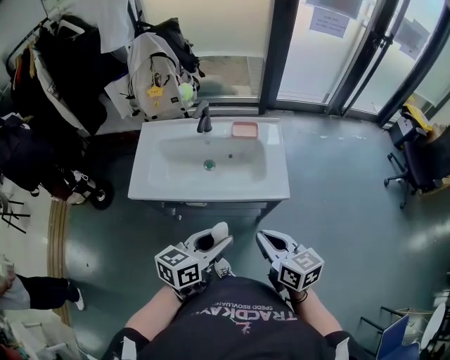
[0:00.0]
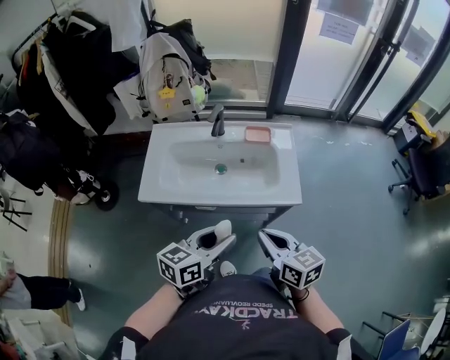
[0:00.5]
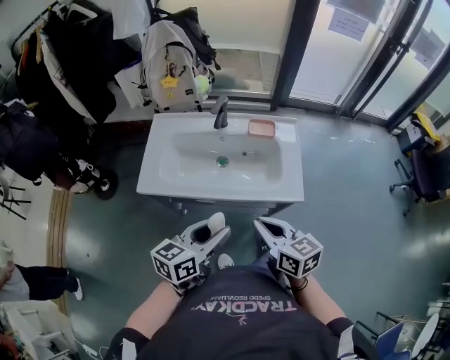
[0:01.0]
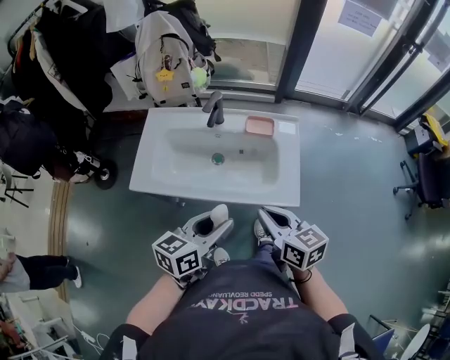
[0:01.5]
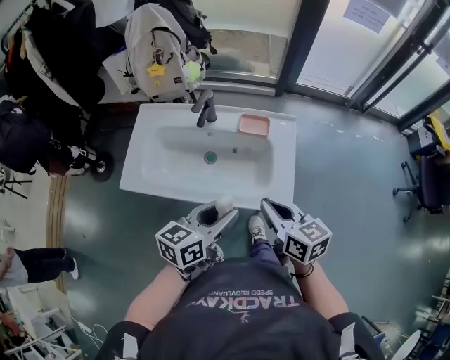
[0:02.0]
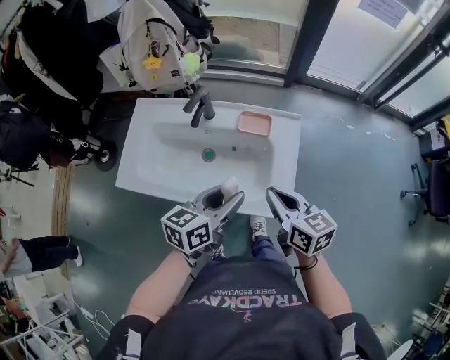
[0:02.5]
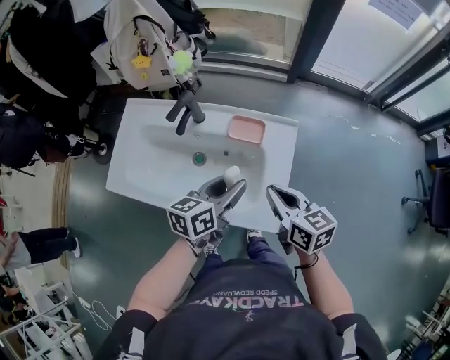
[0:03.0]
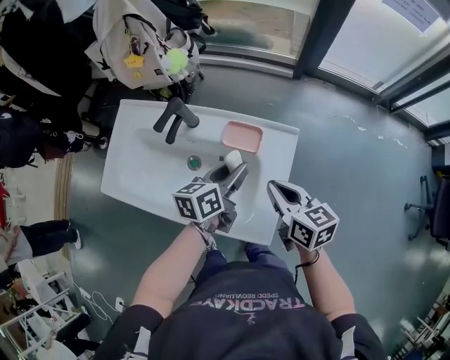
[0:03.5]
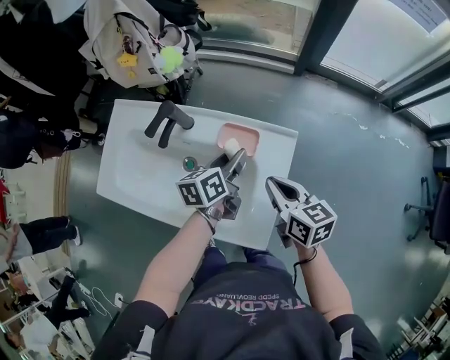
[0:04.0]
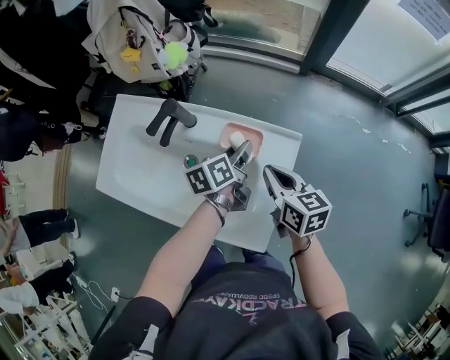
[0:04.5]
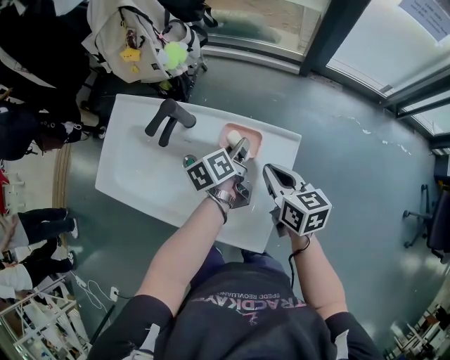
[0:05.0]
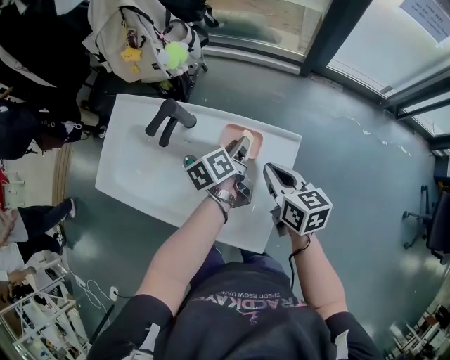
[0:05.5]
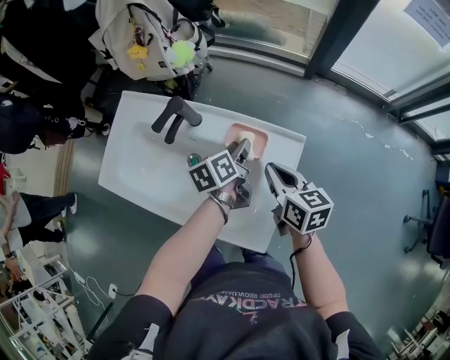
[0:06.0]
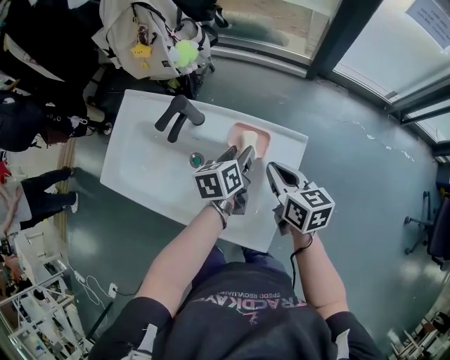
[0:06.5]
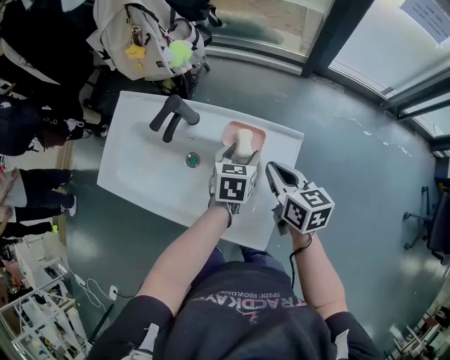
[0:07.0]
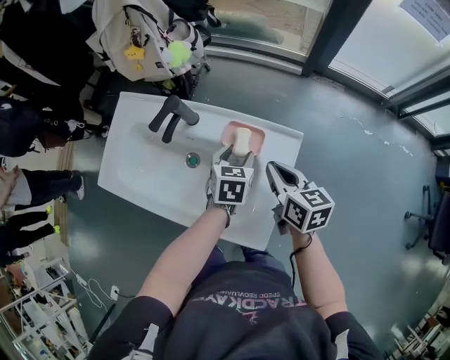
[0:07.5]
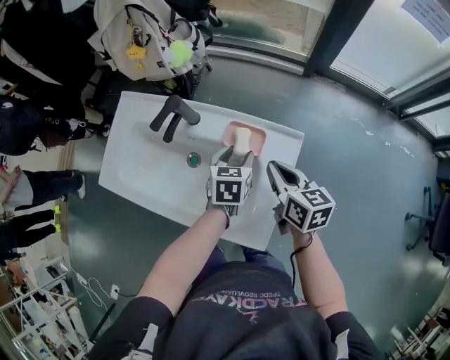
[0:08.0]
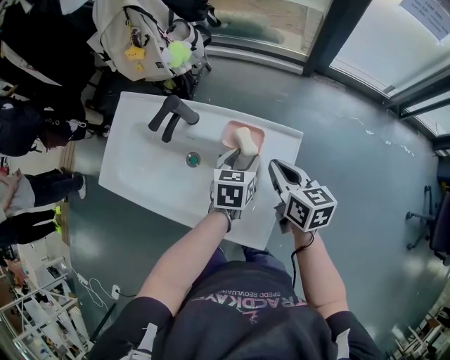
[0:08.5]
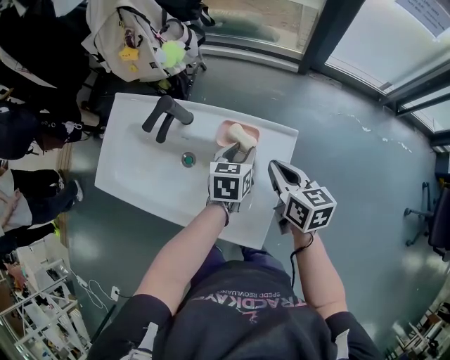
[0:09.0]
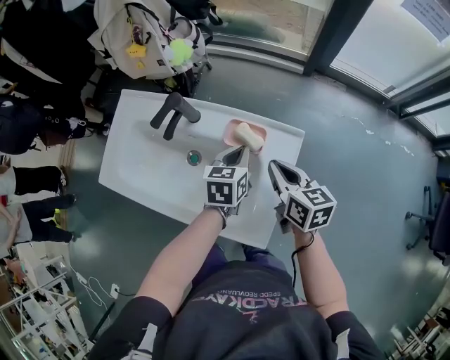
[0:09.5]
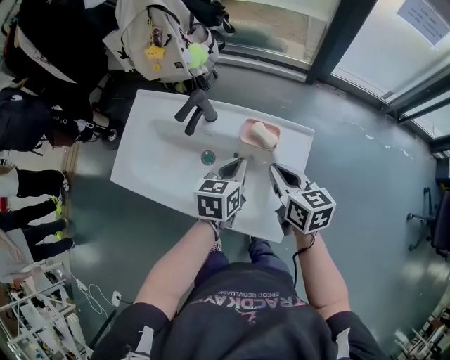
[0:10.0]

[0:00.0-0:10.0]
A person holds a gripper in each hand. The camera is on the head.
0.0 to 2.0 s: The two grippers go about 15 cm forward.
2.0 to 4.0 s: The left gripper is displaced forward, downward and to the right by approximately 35 cm, and rotates about 30 degrees. Meanwhile the right gripper is displaced forward, to the right and downward by about 25 cm.
4.0 to 6.0 s: The grippers make only small movements.
6.0 to 8.0 s: The left gripper swivels about 40 degrees.
8.0 to 10.0 s: The right gripper moves to the left, roughly 5 cm. Meanwhile the left gripper goes about 10 cm upward, to the left and backward, and closes up.

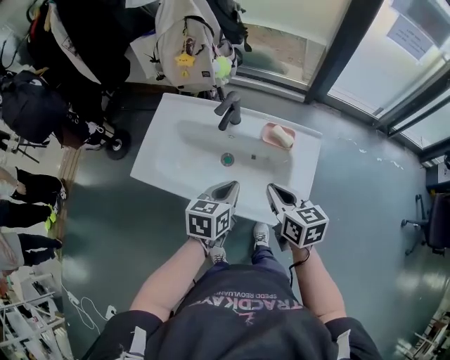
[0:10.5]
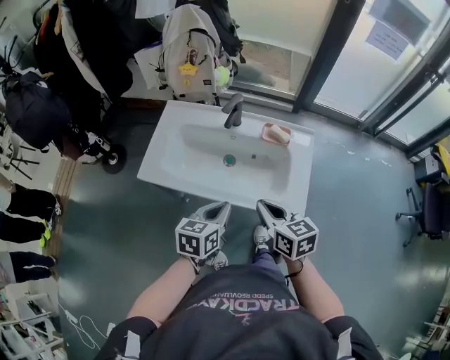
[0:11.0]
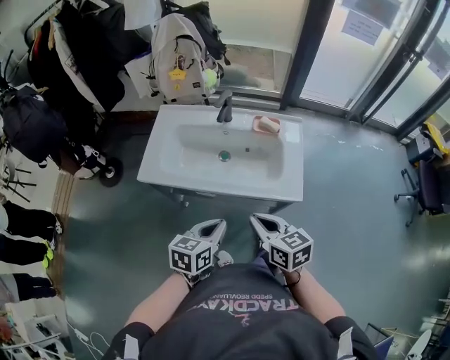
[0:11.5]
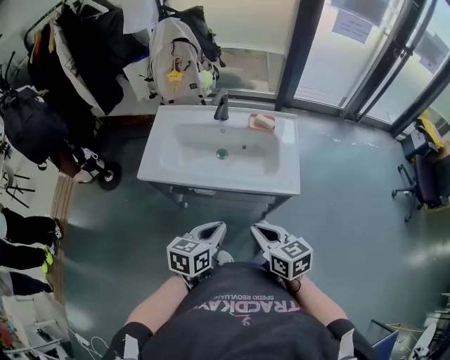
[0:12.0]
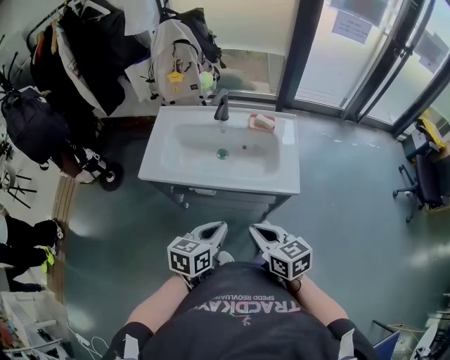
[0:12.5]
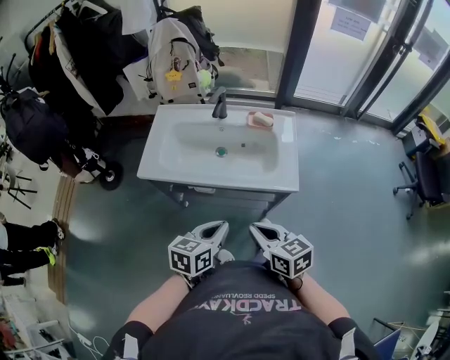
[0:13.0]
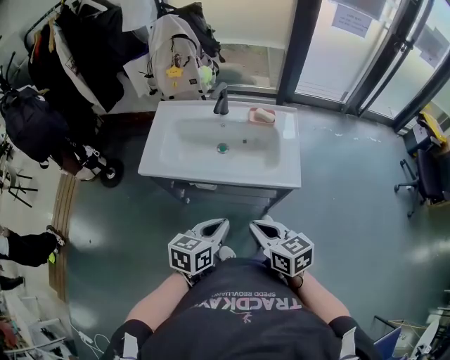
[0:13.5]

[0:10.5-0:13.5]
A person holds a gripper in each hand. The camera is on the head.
10.5 to 12.0 s: The grippers both shift backward by some 25 cm.
12.0 to 13.5 s: There are only small adjustments of the grippers.

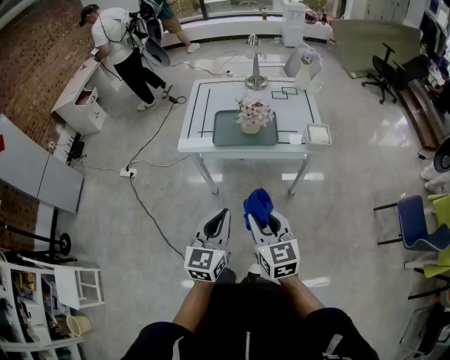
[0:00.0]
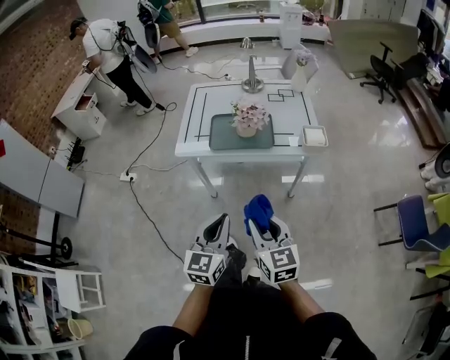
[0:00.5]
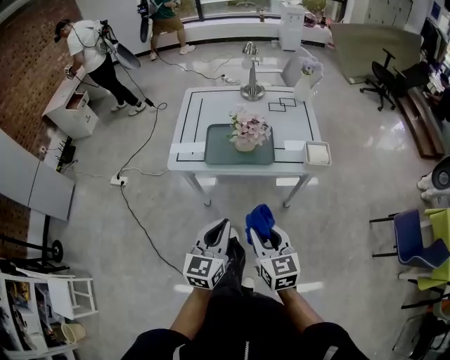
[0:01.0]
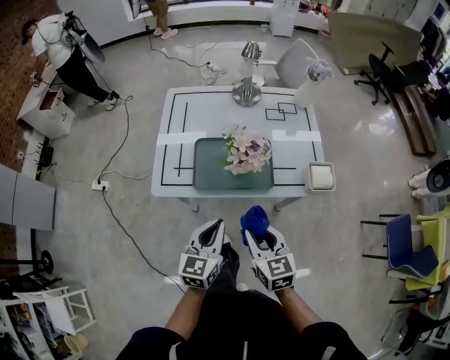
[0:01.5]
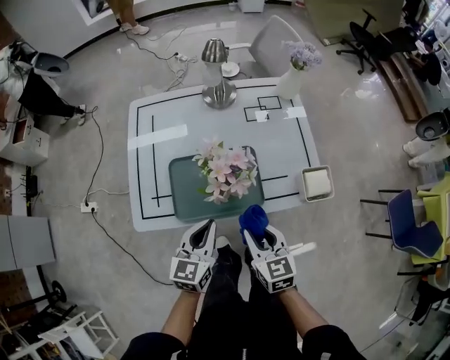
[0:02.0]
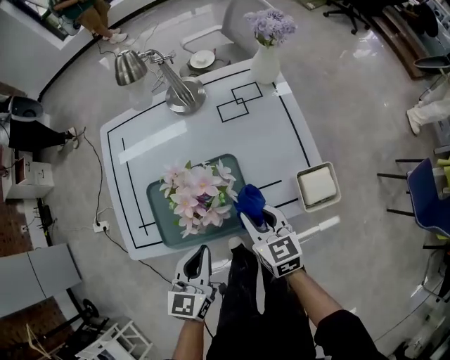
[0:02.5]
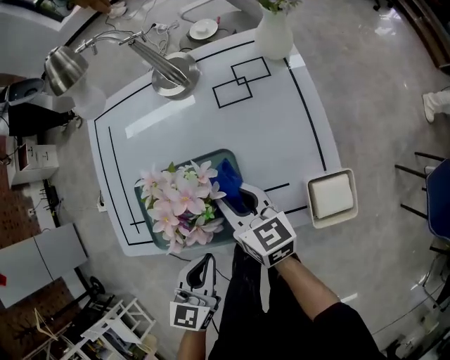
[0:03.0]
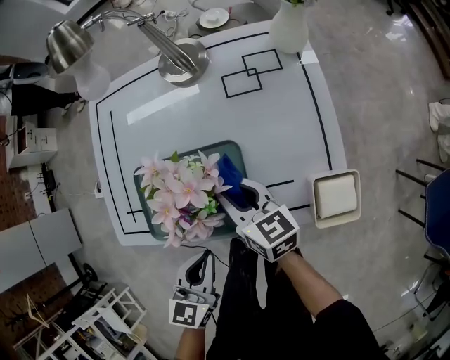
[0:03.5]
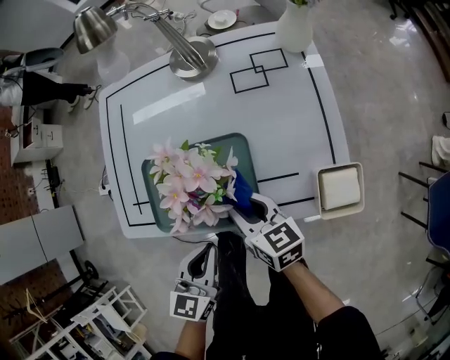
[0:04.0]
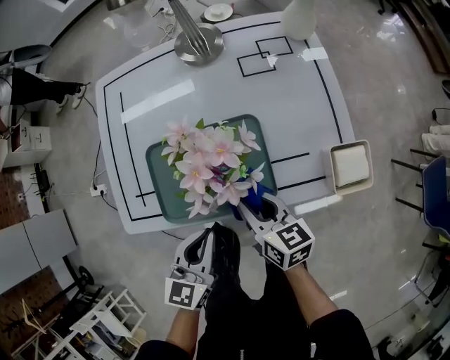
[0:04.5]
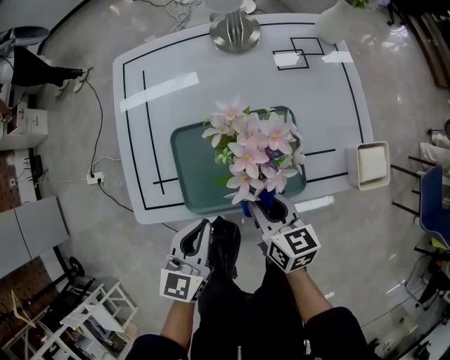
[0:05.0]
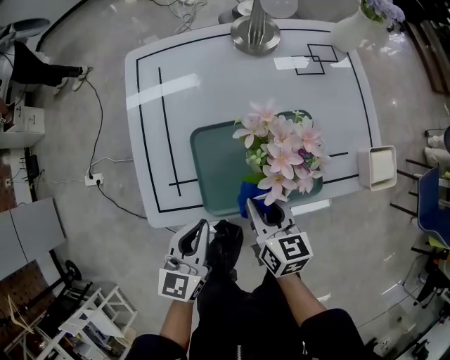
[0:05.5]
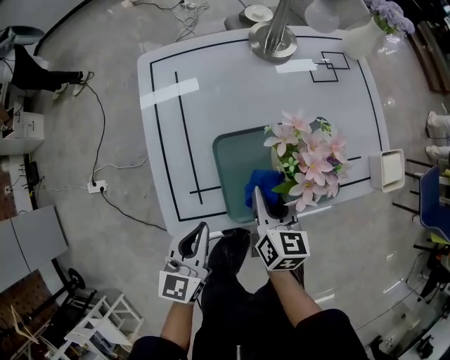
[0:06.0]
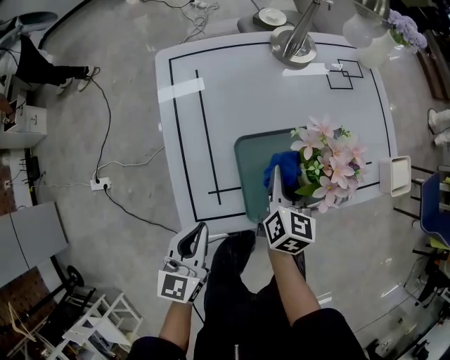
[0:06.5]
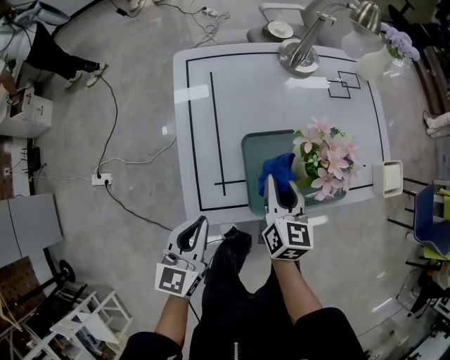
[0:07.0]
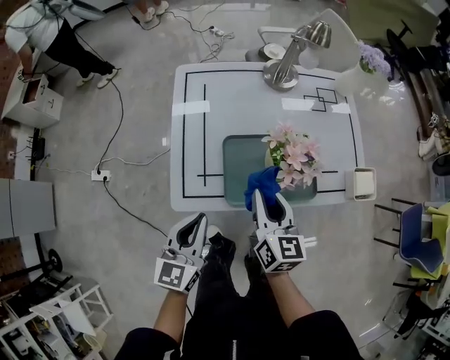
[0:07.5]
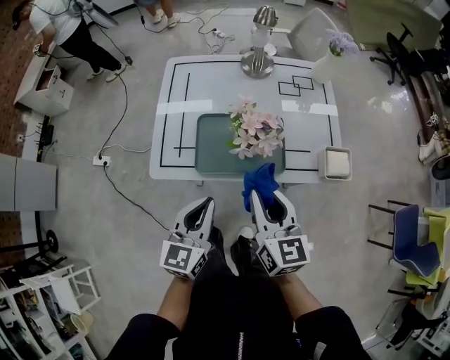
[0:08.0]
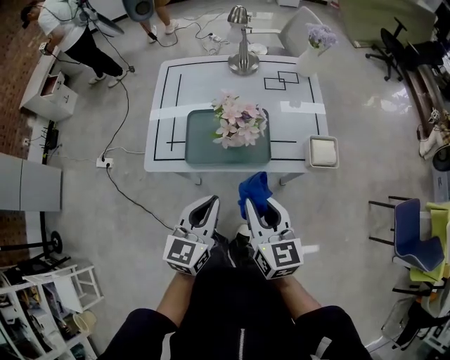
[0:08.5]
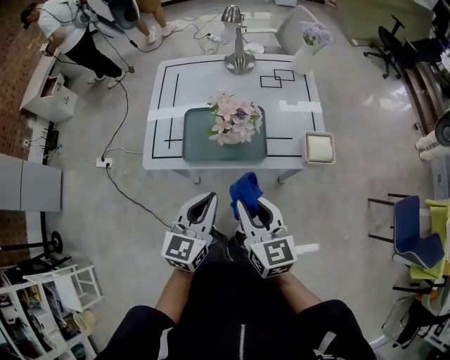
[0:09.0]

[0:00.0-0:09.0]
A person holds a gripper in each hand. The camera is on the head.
0.0 to 2.0 s: Both grippers move forward, about 35 cm.
2.0 to 4.5 s: The left gripper shifts about 10 cm downward, and travels to the right and back again, some 10 cm each way; the right gripper shifts roughly 15 cm downward and forward, and rotates roughly 30 degrees.
4.5 to 7.0 s: Both grippers travel together to the left, approximately 25 cm. The right gripper turns by approximately 30 degrees.
7.0 to 9.0 s: The right gripper goes approximately 35 cm backward, to the right and upward, and rotates roughly 30 degrees. The left gripper travels to the right, backward and upward by roughly 35 cm.

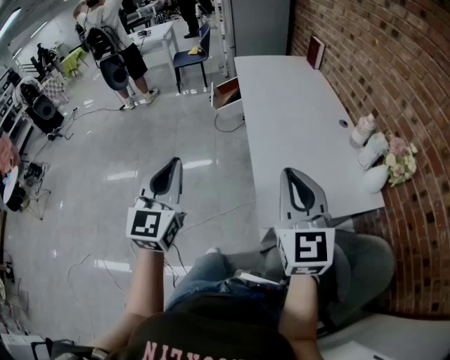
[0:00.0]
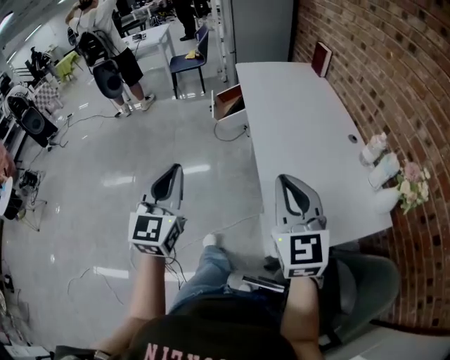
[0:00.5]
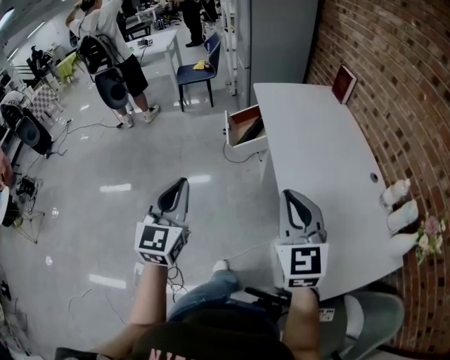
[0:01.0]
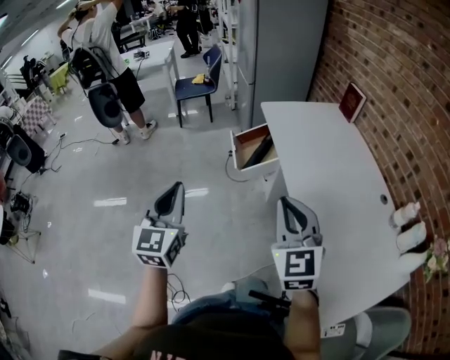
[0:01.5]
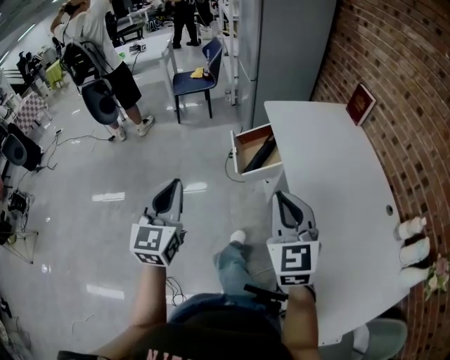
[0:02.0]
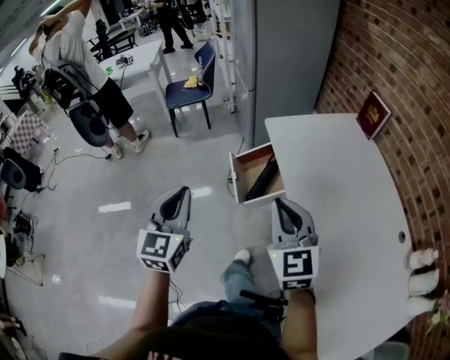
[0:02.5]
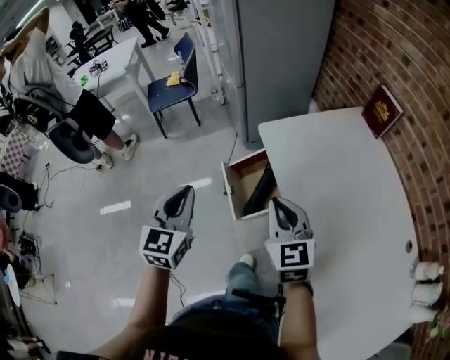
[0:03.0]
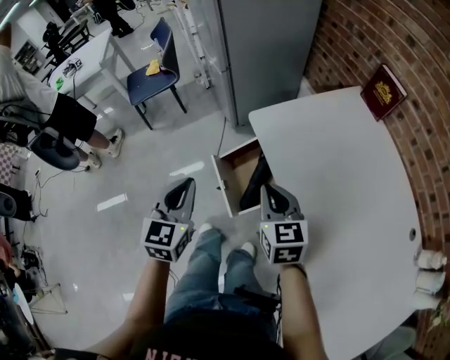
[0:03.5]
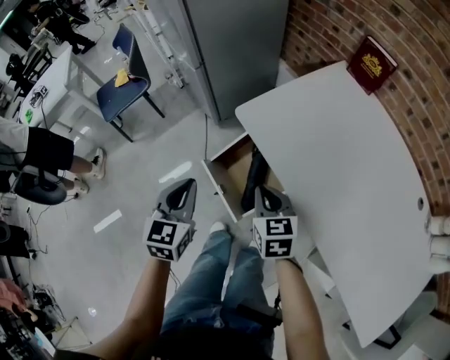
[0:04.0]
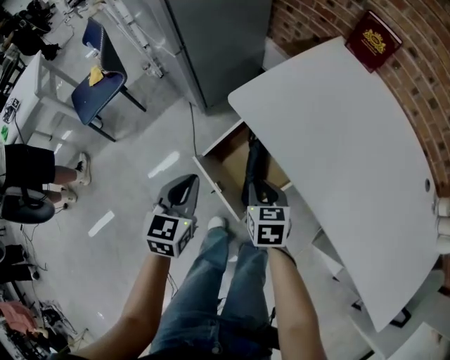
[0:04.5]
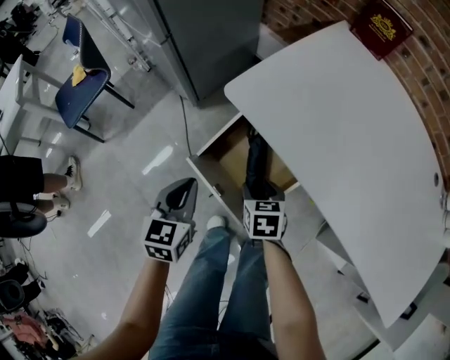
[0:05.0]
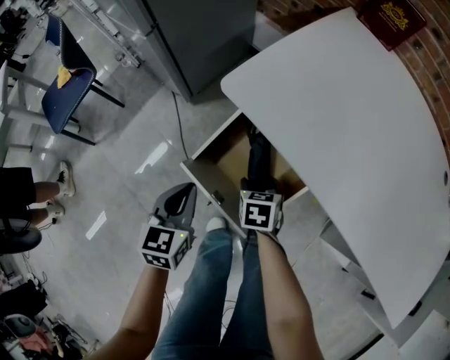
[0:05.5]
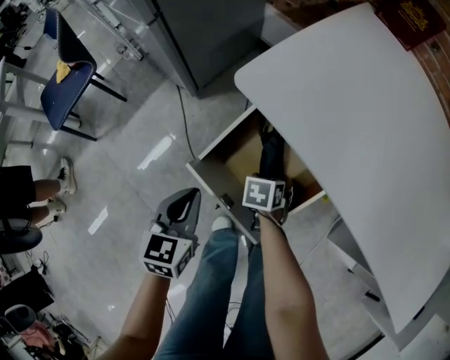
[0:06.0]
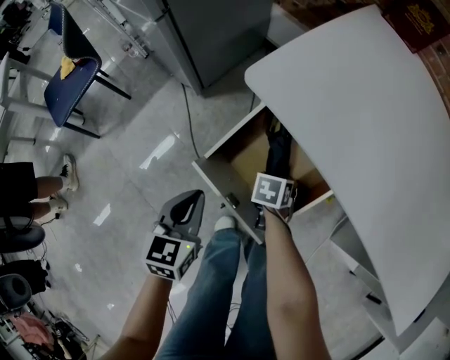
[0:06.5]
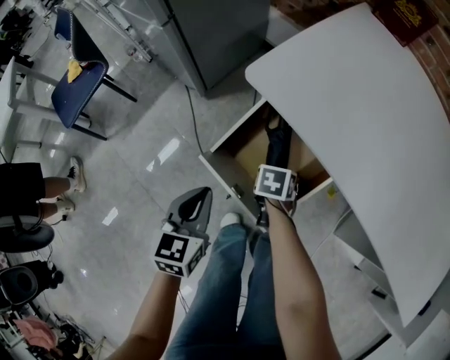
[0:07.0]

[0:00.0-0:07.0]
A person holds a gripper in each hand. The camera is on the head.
0.0 to 2.0 s: The two grippers travel together, forward and to the left, about 50 cm.
2.0 to 3.5 s: The left gripper is displaced forward by roughly 40 cm, and rotates some 30 degrees. Meanwhile the right gripper travels forward and downward by roughly 40 cm, and swivels roughly 30 degrees.
3.5 to 5.0 s: The left gripper goes approximately 25 cm downward and forward, and changes its angle by roughly 30 degrees. The right gripper shifts some 30 cm downward, rotates about 40 degrees, and opens up.
5.0 to 7.0 s: The right gripper heads downward, covering about 10 cm, and swivels about 30 degrees. The left gripper travels downward by some 5 cm.
